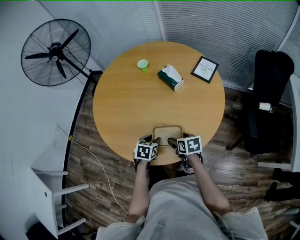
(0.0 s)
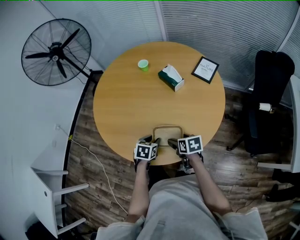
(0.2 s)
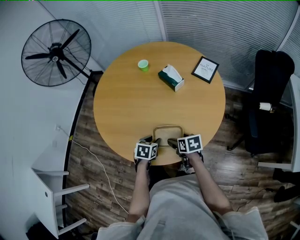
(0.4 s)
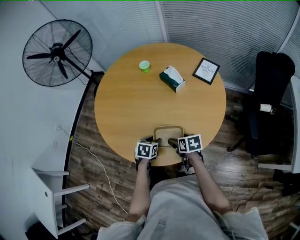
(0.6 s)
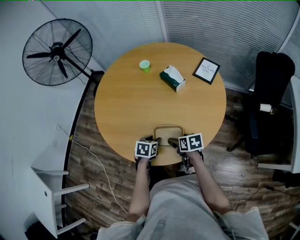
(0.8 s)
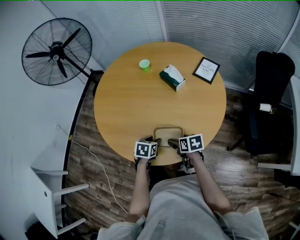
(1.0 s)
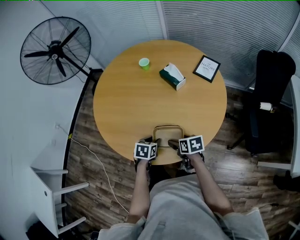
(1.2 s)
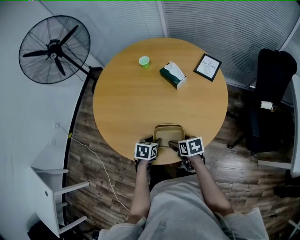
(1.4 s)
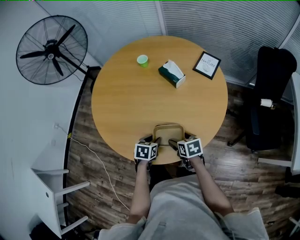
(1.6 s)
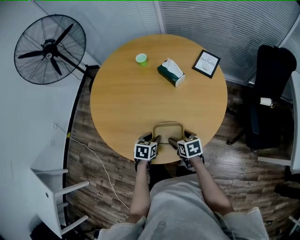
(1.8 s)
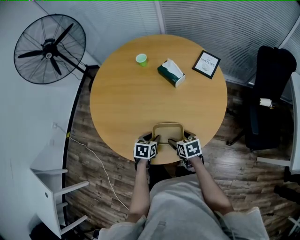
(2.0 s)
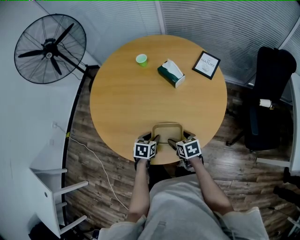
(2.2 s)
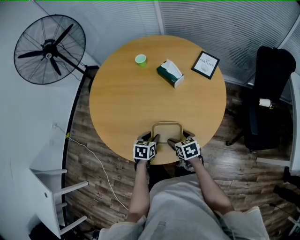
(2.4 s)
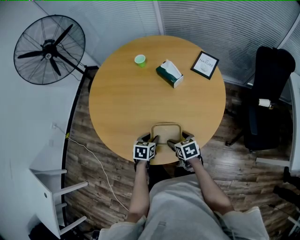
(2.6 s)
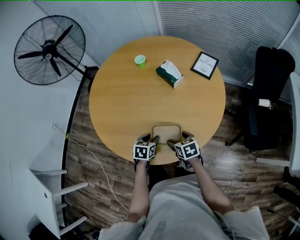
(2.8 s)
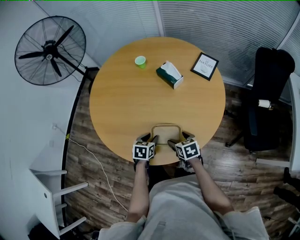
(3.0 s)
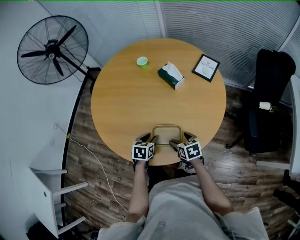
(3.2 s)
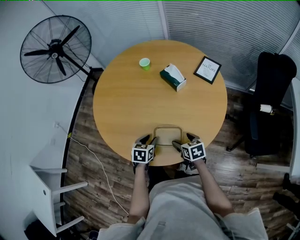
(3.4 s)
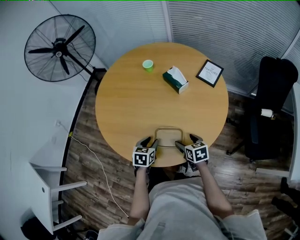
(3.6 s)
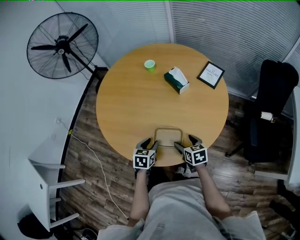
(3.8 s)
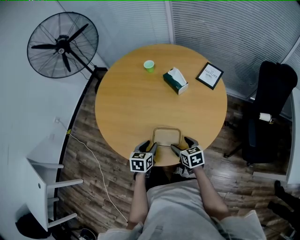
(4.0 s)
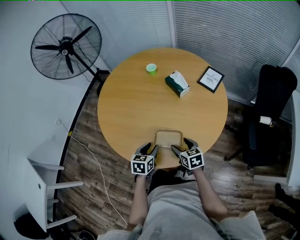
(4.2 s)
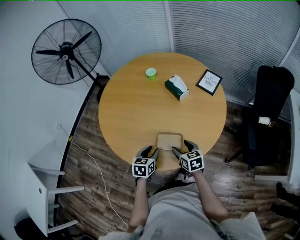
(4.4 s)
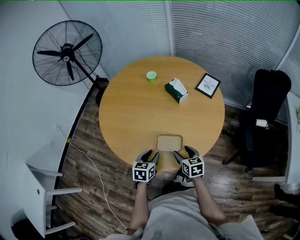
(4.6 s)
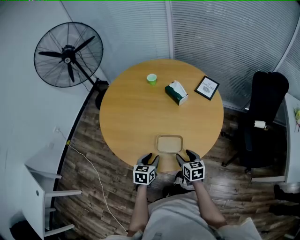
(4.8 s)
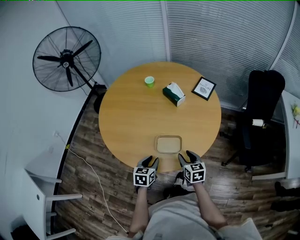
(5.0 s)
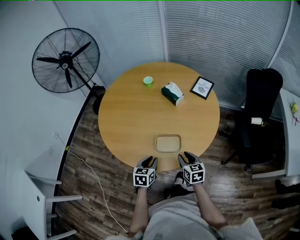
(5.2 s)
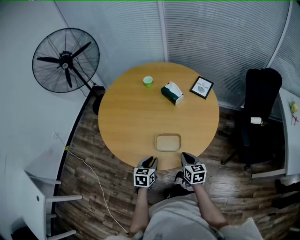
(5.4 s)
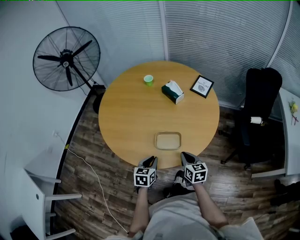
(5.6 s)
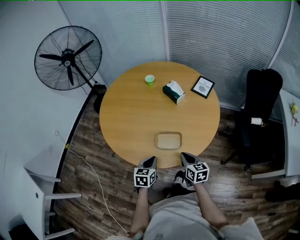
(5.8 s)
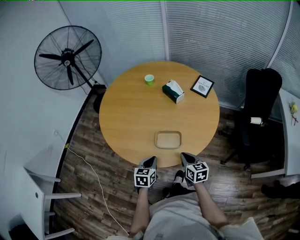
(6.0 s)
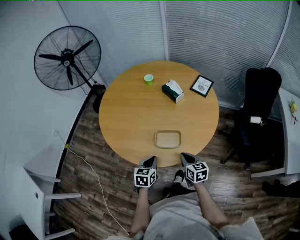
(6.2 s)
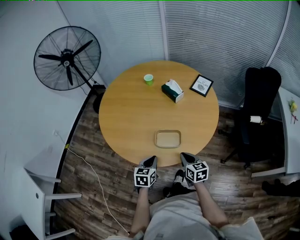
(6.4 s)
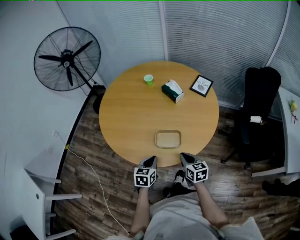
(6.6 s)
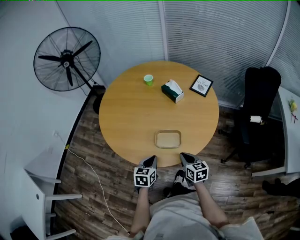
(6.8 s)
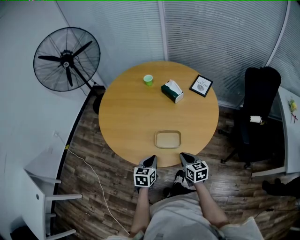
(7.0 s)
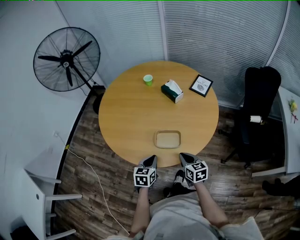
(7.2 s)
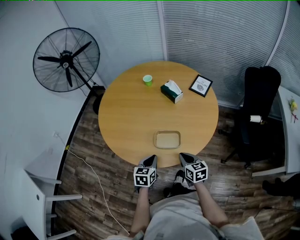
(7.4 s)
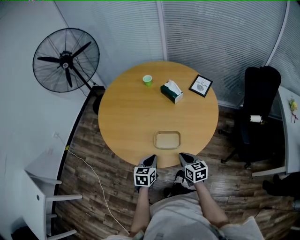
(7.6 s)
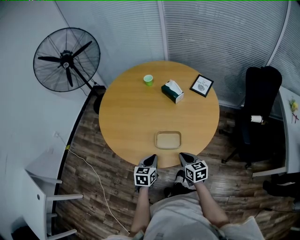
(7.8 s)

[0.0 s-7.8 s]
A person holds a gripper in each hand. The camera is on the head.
0.0 to 3.2 s: The grippers move only a little.
3.2 to 4.6 s: The left gripper moves upward and backward, some 10 cm; the right gripper shifts roughly 5 cm upward.
4.6 to 6.2 s: Both grippers travel together backward, some 5 cm. The right gripper closes. Meanwhile the left gripper closes up.
6.2 to 7.8 s: The grippers stay close to where they were, moving slightly.

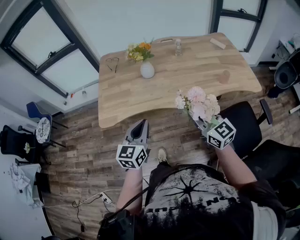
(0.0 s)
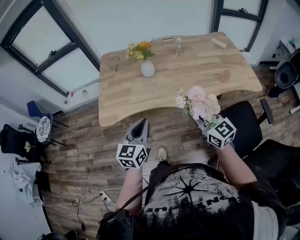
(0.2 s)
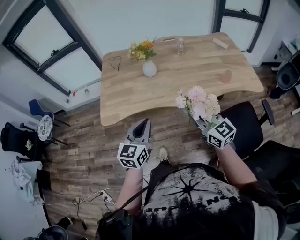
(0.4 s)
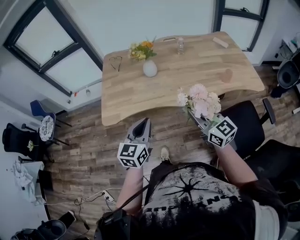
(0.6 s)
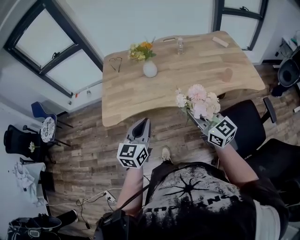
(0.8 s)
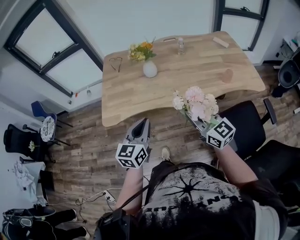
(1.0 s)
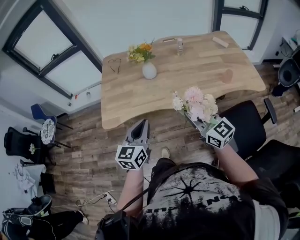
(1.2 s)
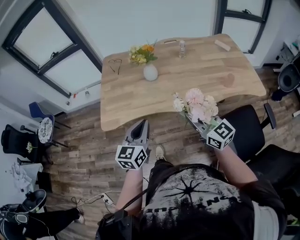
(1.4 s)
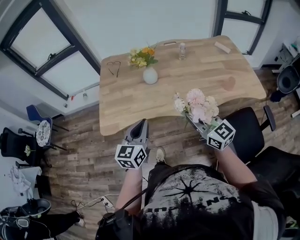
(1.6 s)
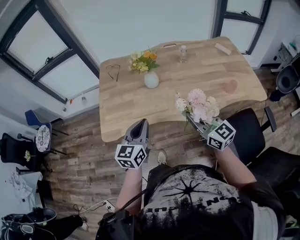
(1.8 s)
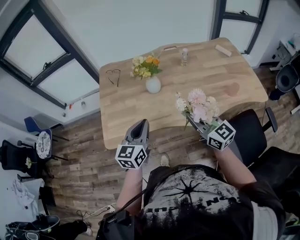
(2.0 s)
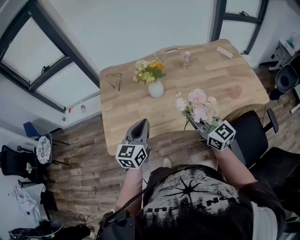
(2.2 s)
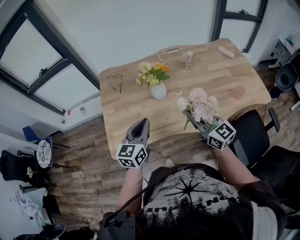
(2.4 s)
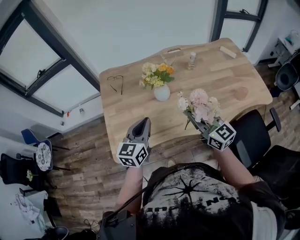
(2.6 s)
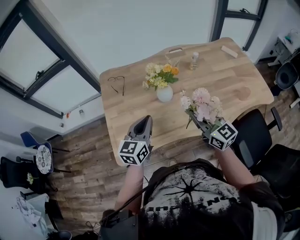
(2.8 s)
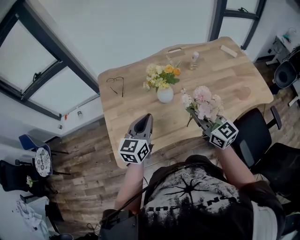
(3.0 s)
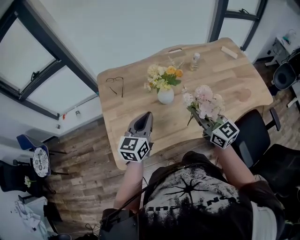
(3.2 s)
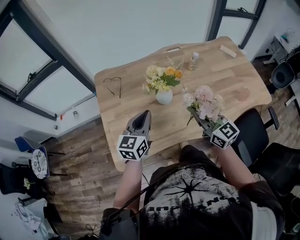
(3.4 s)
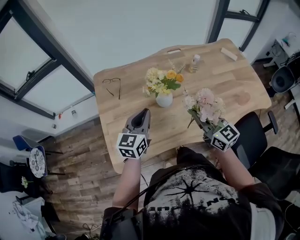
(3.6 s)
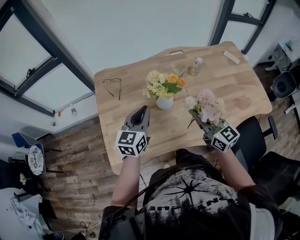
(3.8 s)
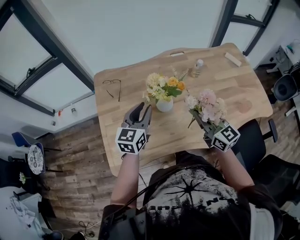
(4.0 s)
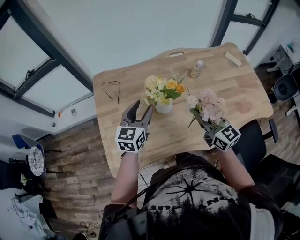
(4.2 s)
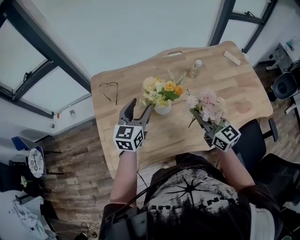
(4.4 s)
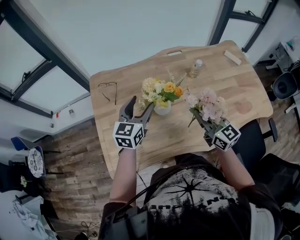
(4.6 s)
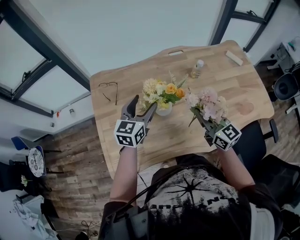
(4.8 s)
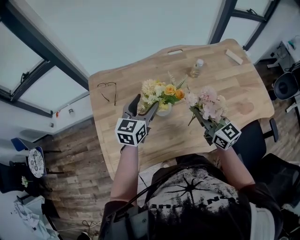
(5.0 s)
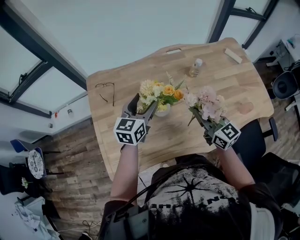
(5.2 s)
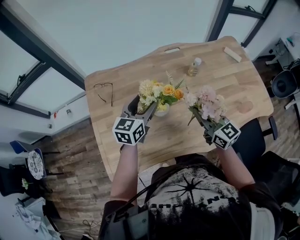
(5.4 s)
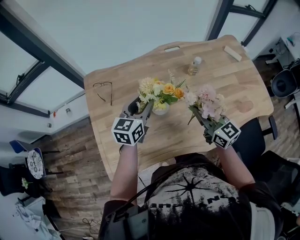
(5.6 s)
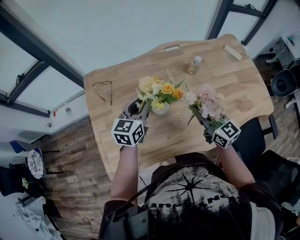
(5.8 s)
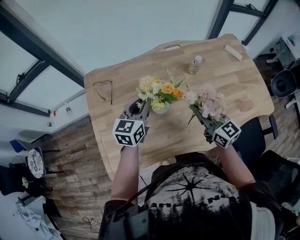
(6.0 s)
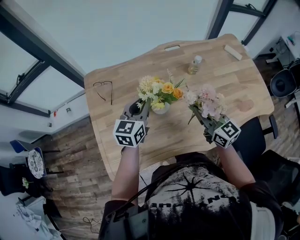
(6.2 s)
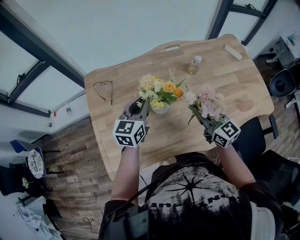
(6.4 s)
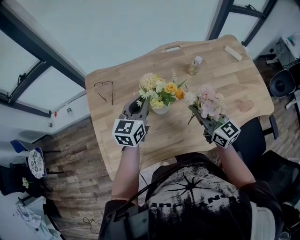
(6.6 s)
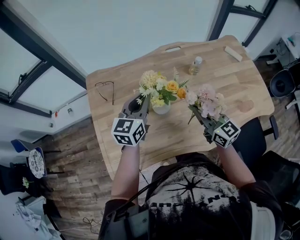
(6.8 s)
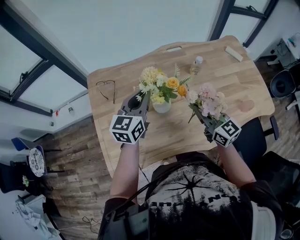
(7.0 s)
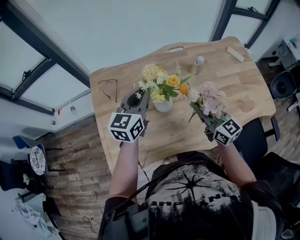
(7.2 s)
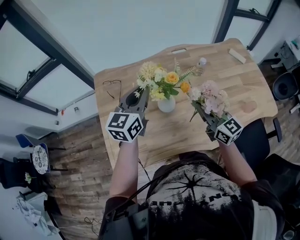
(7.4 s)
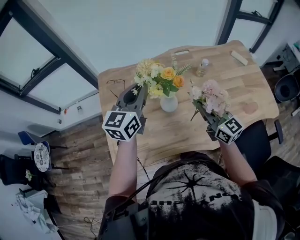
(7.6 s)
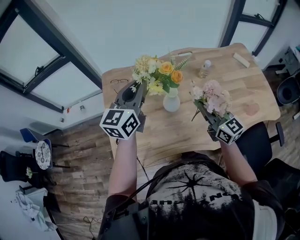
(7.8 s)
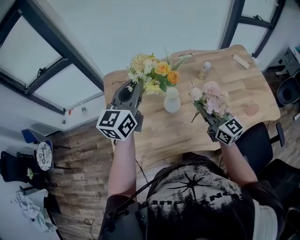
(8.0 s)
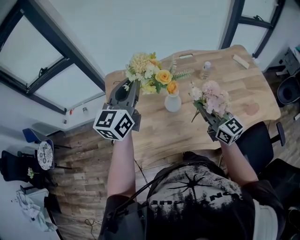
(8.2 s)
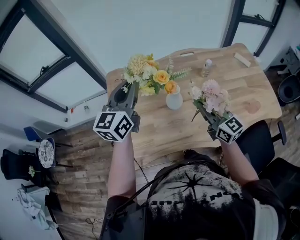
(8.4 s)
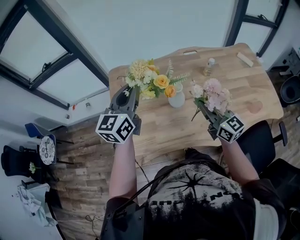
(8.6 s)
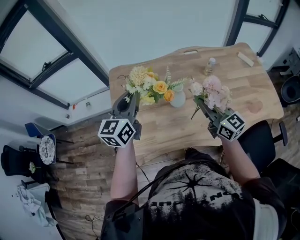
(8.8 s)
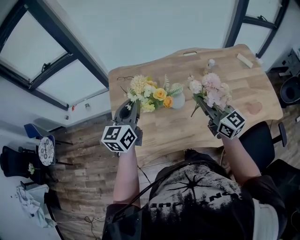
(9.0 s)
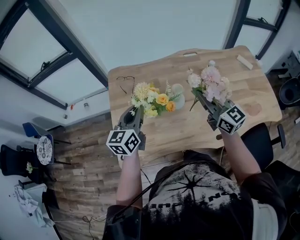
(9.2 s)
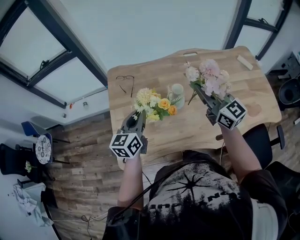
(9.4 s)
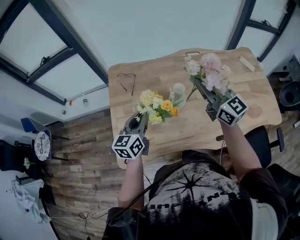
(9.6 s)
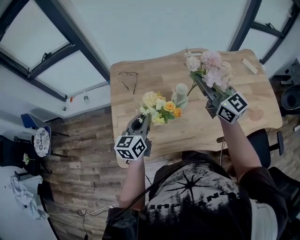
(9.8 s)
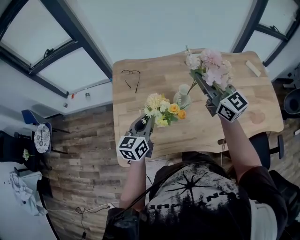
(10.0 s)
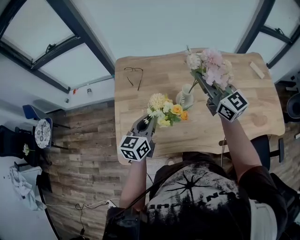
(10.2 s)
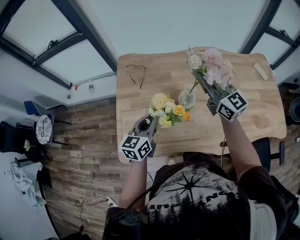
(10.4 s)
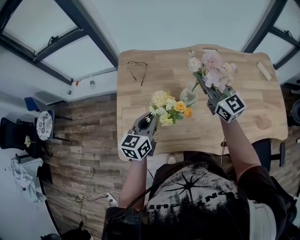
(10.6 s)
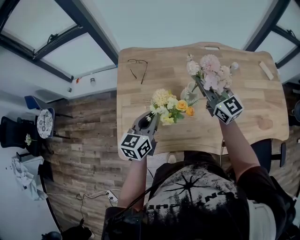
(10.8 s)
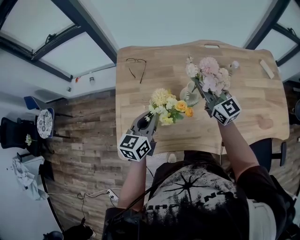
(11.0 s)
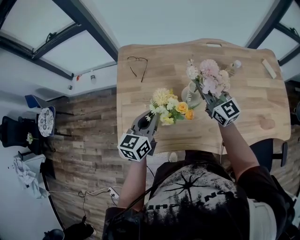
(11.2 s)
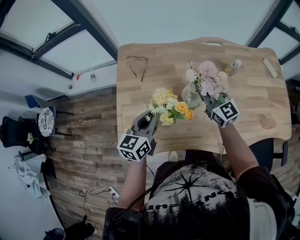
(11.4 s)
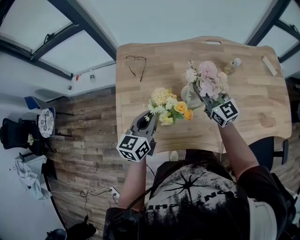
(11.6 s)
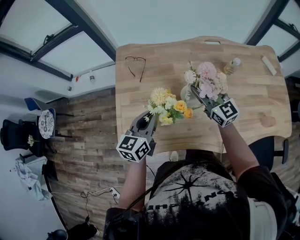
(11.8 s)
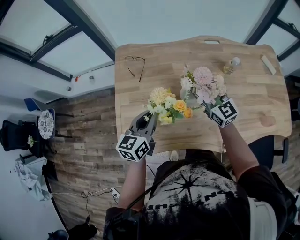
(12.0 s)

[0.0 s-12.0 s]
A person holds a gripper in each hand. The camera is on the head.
0.0 to 1.6 s: Both grippers move forward, roughly 5 cm.
1.6 to 3.0 s: The right gripper heads forward and to the left, covering approximately 20 cm; the left gripper moves forward, roughly 20 cm.
3.0 to 4.4 s: The left gripper shifts approximately 15 cm forward, and opens up; the right gripper moves forward, some 10 cm.
4.4 to 6.0 s: The left gripper changes place by roughly 5 cm, and closes its fingers.
6.0 to 7.6 s: The left gripper moves upward, approximately 15 cm.
7.6 to 9.0 s: The right gripper moves some 5 cm, while the left gripper moves to the left and backward, about 10 cm, and moves approximately 5 cm upward and comes back.
9.0 to 10.4 s: The right gripper shifts about 10 cm forward. Meanwhile the left gripper moves downward, about 10 cm.
10.4 to 12.0 s: The right gripper is displaced downward by roughly 10 cm, and opens up.

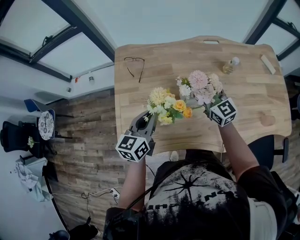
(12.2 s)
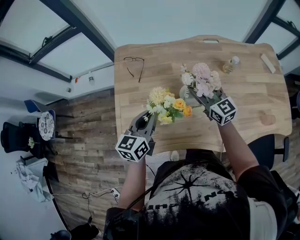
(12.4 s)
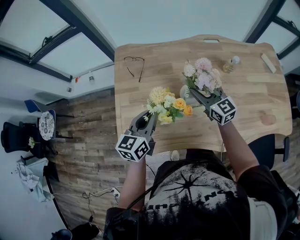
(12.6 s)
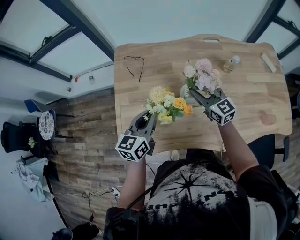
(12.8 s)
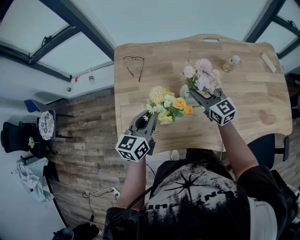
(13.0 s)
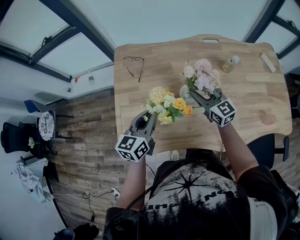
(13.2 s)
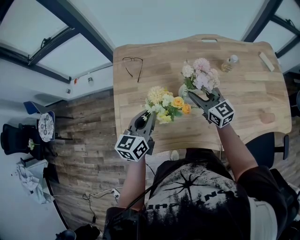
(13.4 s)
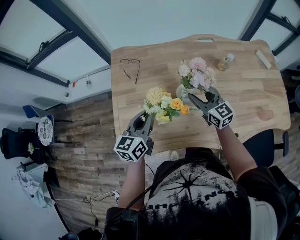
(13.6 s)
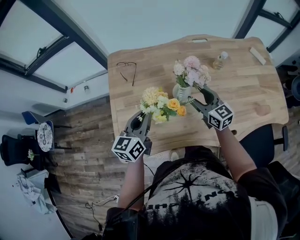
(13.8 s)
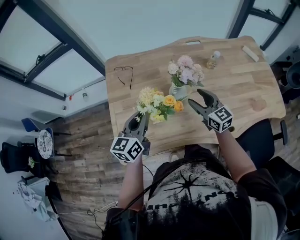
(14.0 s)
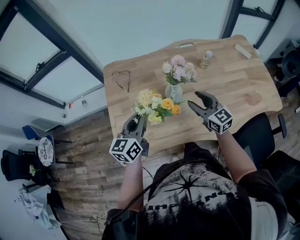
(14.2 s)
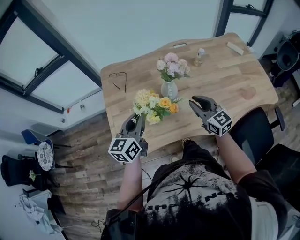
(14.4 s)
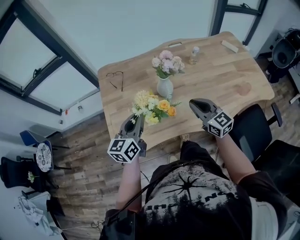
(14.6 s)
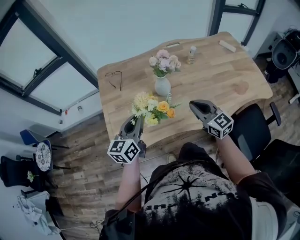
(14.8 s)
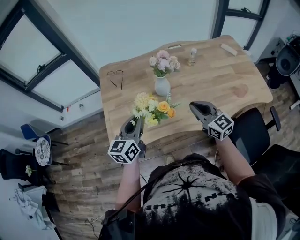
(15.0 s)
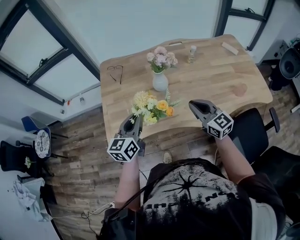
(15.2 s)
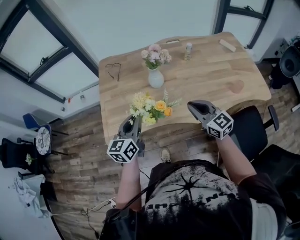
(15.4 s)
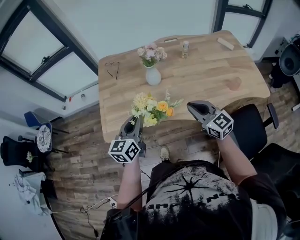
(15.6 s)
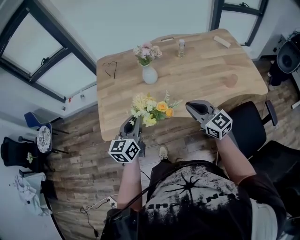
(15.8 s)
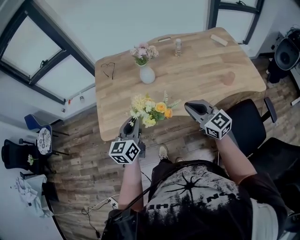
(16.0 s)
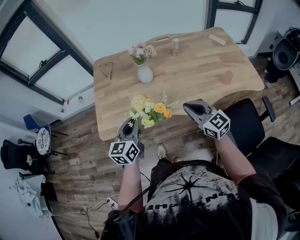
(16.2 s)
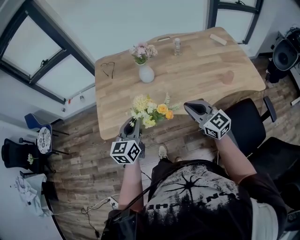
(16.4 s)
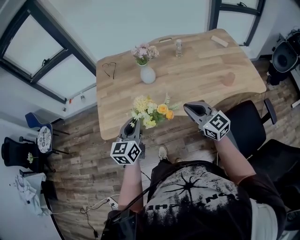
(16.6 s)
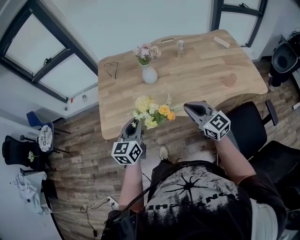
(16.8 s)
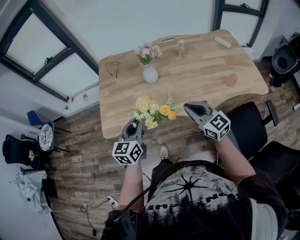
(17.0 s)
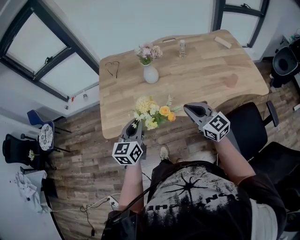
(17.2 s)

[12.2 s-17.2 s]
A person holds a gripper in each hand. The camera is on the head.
12.2 to 13.8 s: The right gripper changes place by some 5 cm.
13.8 to 15.6 s: Both grippers move backward, some 25 cm. The right gripper closes.
15.6 to 17.2 s: The grippers move only a little.
